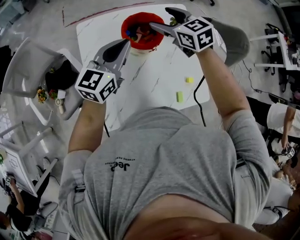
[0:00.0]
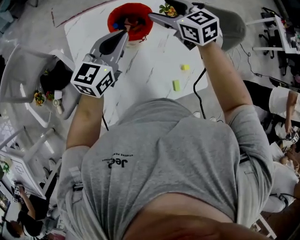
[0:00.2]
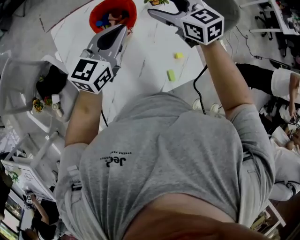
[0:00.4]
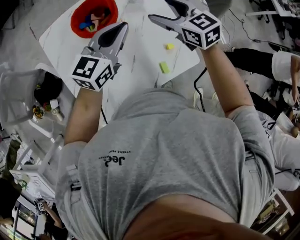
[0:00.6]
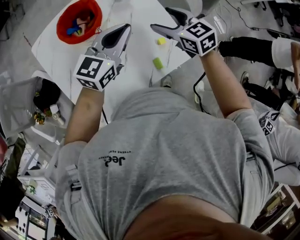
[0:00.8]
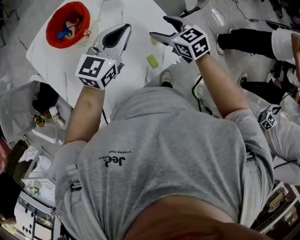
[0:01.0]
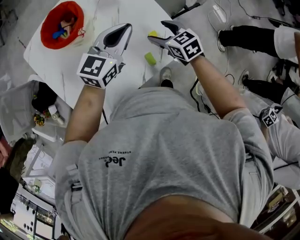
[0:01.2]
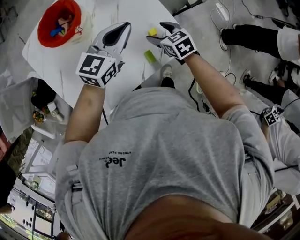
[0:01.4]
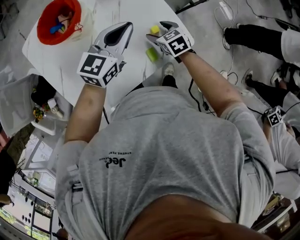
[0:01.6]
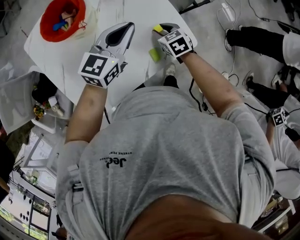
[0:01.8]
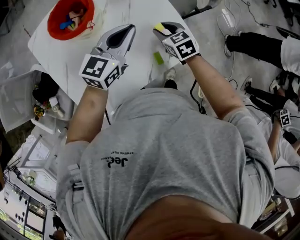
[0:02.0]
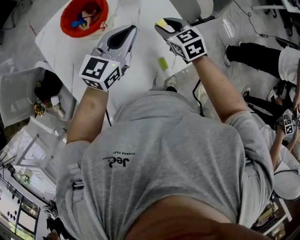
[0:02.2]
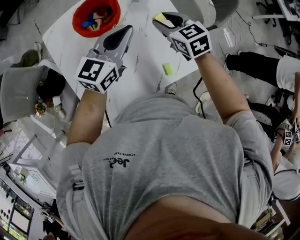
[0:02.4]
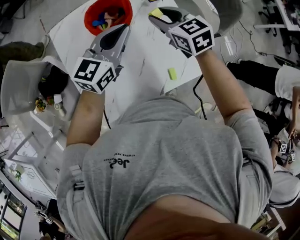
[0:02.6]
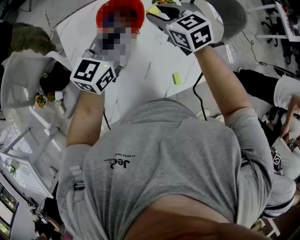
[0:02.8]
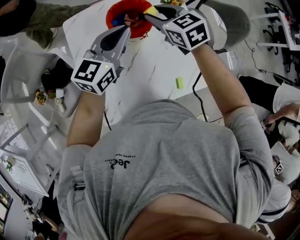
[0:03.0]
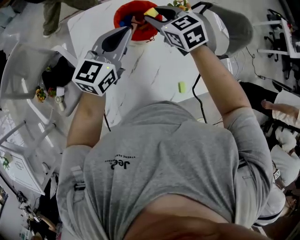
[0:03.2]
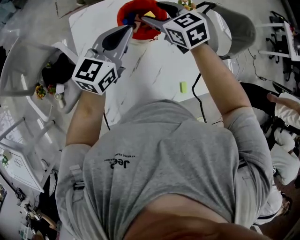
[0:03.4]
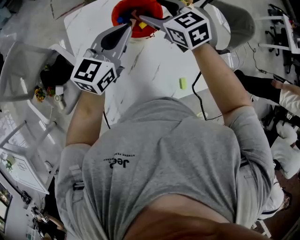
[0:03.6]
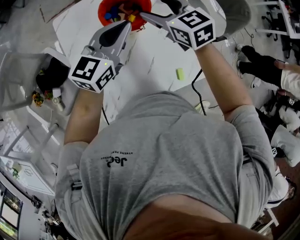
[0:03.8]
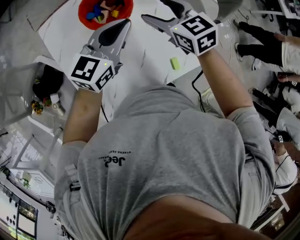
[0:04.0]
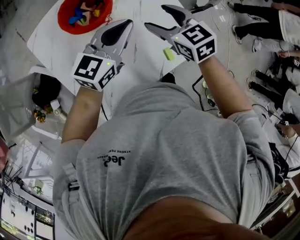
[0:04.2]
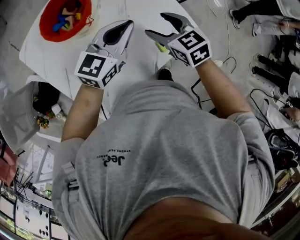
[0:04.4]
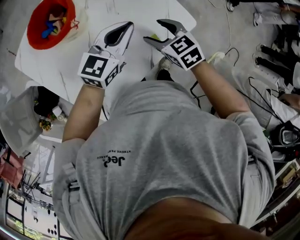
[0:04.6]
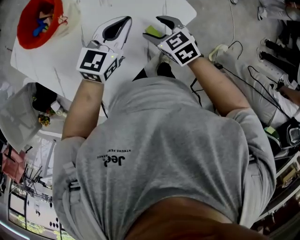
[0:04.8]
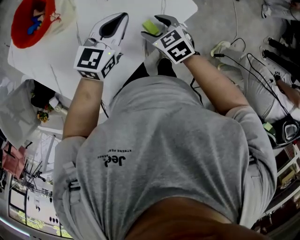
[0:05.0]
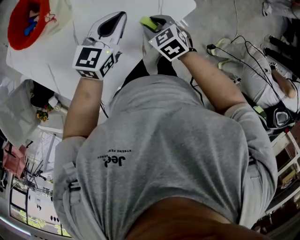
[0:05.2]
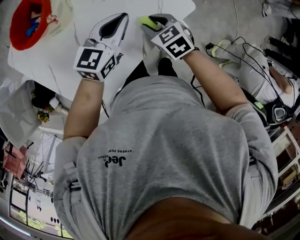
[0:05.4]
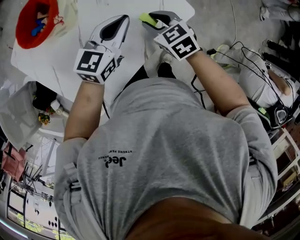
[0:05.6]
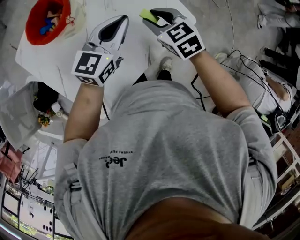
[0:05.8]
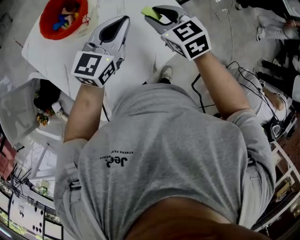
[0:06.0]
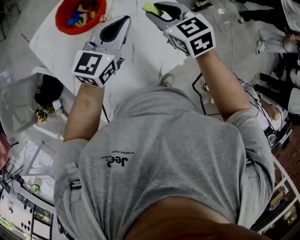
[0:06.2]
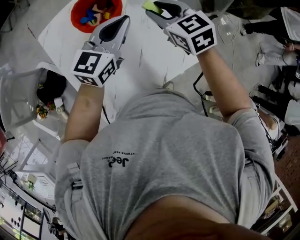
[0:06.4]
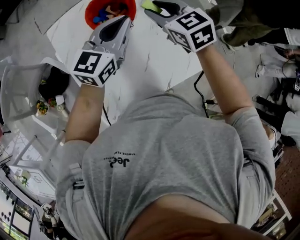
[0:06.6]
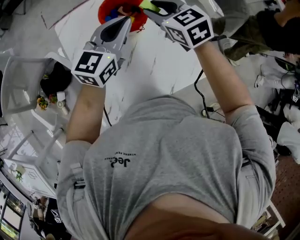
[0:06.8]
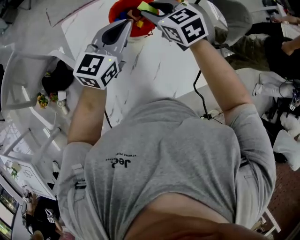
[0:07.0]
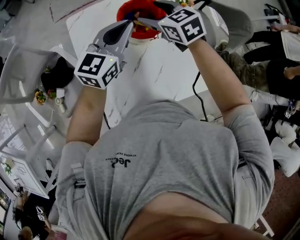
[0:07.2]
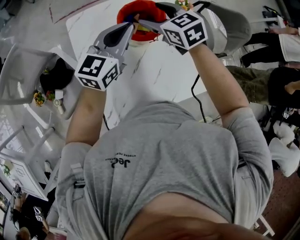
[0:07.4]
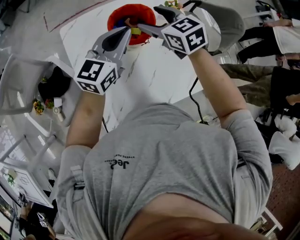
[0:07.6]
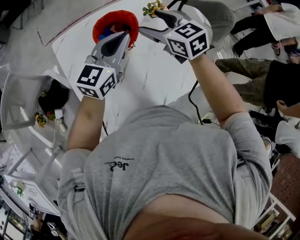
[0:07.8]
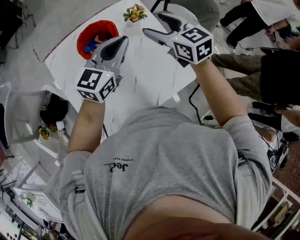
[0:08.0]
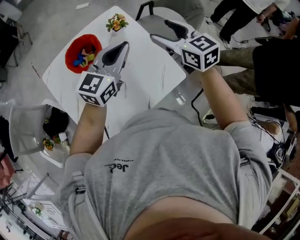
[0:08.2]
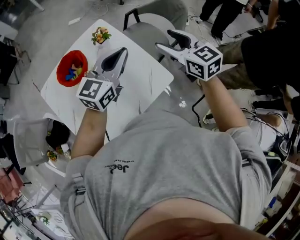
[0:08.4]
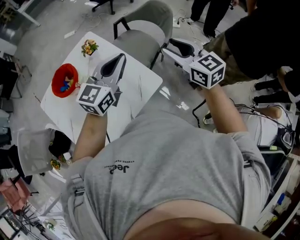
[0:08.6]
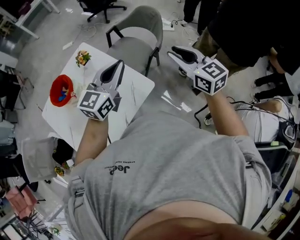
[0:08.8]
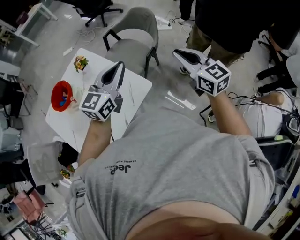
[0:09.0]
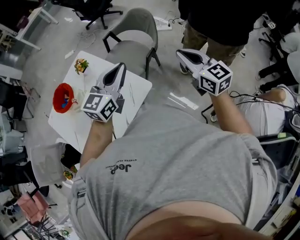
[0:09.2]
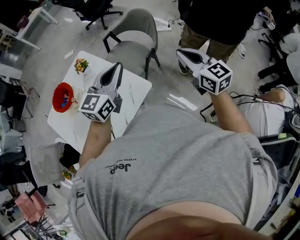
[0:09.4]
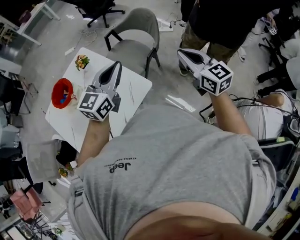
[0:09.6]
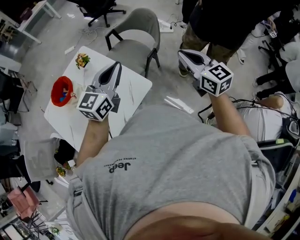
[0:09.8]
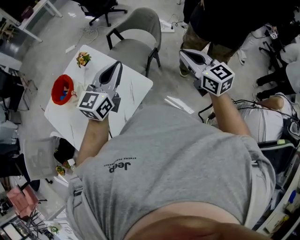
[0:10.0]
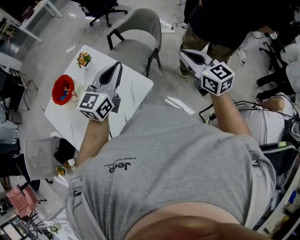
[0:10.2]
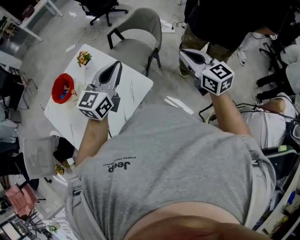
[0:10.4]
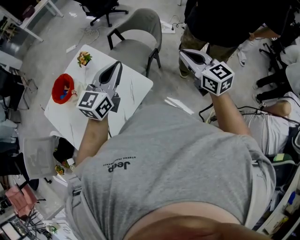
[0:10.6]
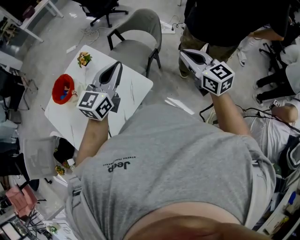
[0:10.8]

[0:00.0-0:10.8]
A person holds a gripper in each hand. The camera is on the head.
0:00.0 to 0:01.6: The right gripper is displaced to the right, downward and backward by some 40 cm, and turns by roughly 40 degrees; the left gripper shifts roughly 30 cm to the right and downward, and changes its angle by roughly 30 degrees.
0:01.6 to 0:03.0: The left gripper moves to the left and upward, approximately 25 cm, and rotates about 20 degrees, while the right gripper travels to the left, upward and forward by roughly 40 cm, swivels roughly 30 degrees, and closes its fingers.
0:03.0 to 0:04.6: The left gripper shifts by roughly 25 cm, and turns by approximately 30 degrees. The right gripper changes place by roughly 35 cm, changes its angle by roughly 30 degrees, and opens its fingers.
0:04.6 to 0:06.2: The right gripper shifts roughly 15 cm upward, forward and to the left, and closes up, while the left gripper heads to the left and upward, covering roughly 10 cm.
0:06.2 to 0:07.8: The right gripper moves to the left, forward and upward, about 15 cm, and opens; the left gripper goes some 15 cm to the left, upward and forward.
0:07.8 to 0:09.2: Both grippers are carried approximately 50 cm. The right gripper swivels roughly 40 degrees, and closes up. Meanwhile the left gripper turns by about 20 degrees.
0:09.2 to 0:10.8: The grippers make only small movements.

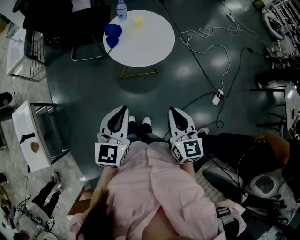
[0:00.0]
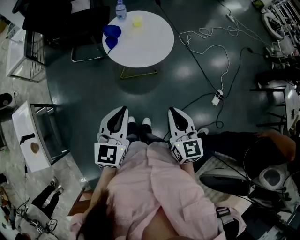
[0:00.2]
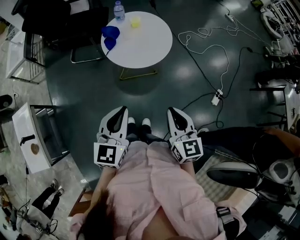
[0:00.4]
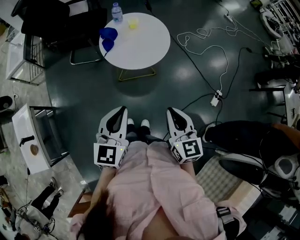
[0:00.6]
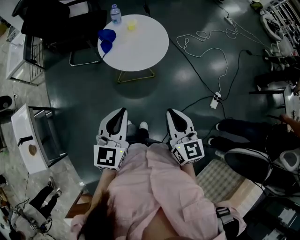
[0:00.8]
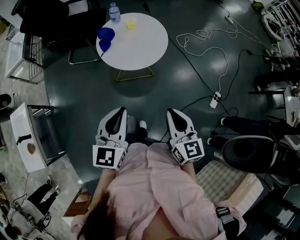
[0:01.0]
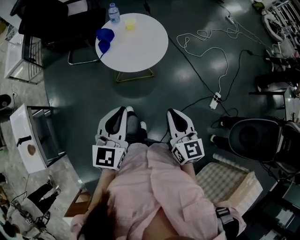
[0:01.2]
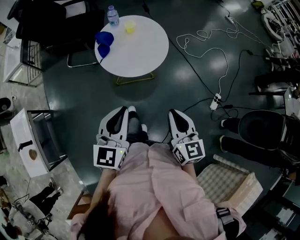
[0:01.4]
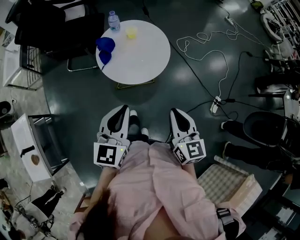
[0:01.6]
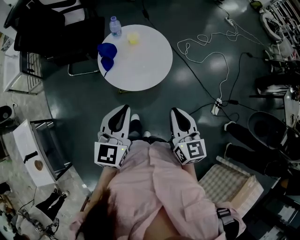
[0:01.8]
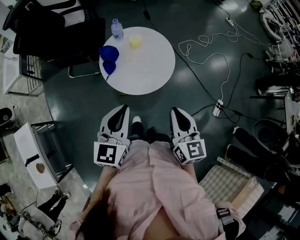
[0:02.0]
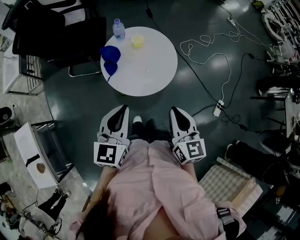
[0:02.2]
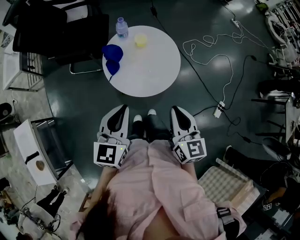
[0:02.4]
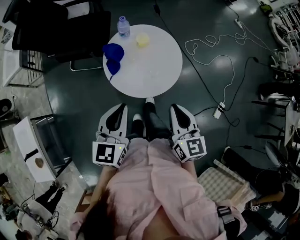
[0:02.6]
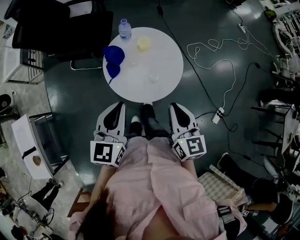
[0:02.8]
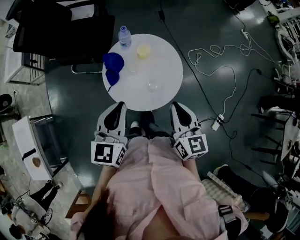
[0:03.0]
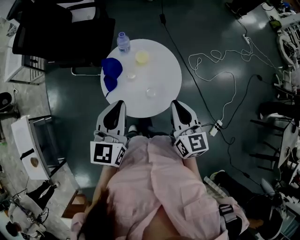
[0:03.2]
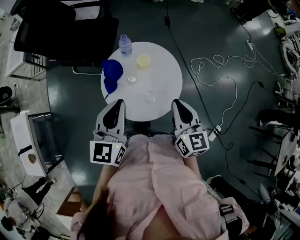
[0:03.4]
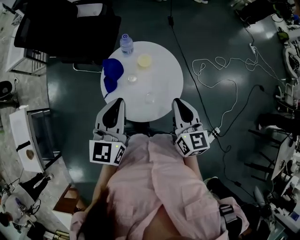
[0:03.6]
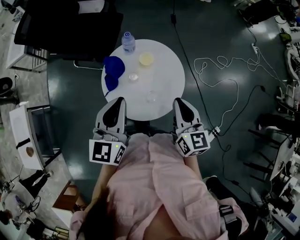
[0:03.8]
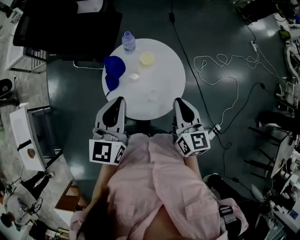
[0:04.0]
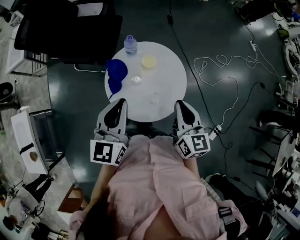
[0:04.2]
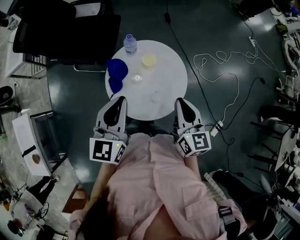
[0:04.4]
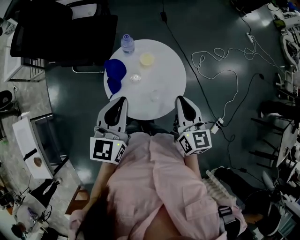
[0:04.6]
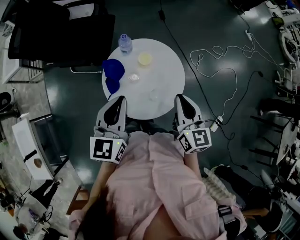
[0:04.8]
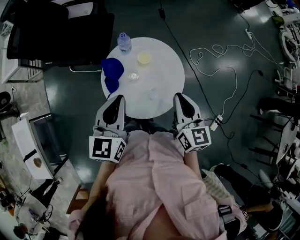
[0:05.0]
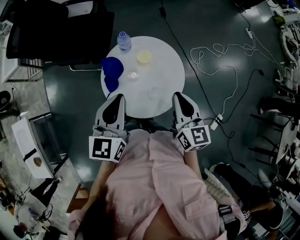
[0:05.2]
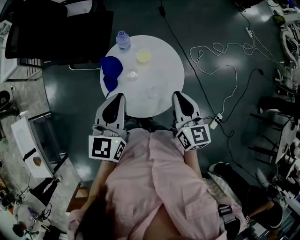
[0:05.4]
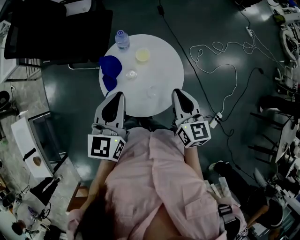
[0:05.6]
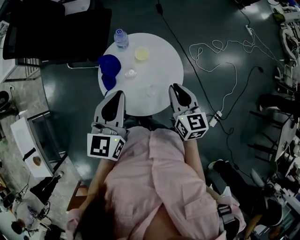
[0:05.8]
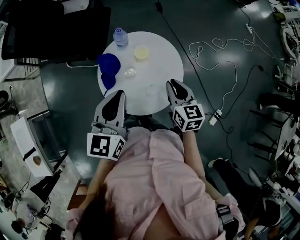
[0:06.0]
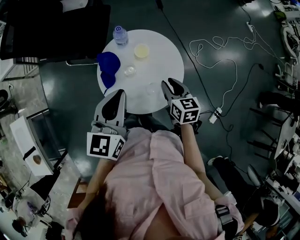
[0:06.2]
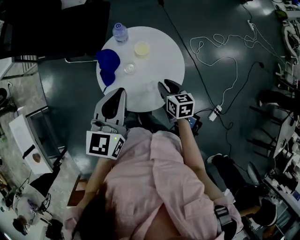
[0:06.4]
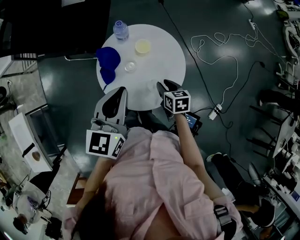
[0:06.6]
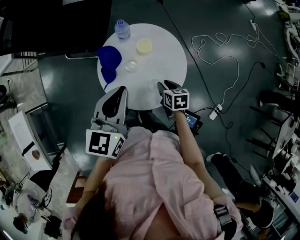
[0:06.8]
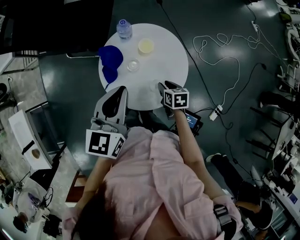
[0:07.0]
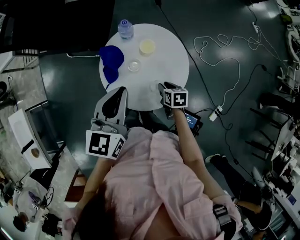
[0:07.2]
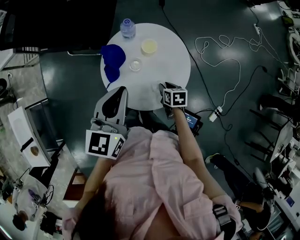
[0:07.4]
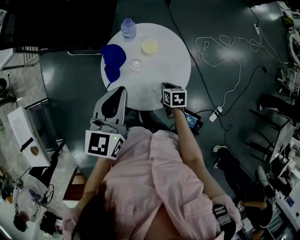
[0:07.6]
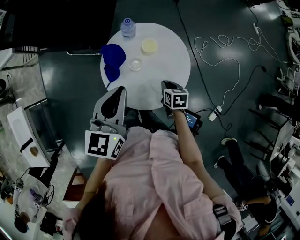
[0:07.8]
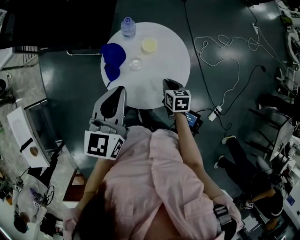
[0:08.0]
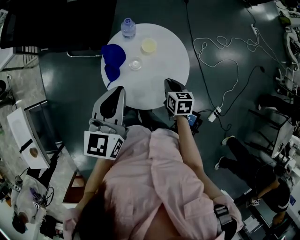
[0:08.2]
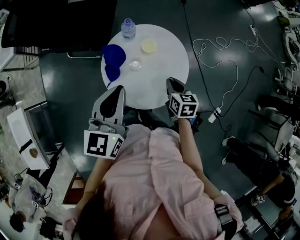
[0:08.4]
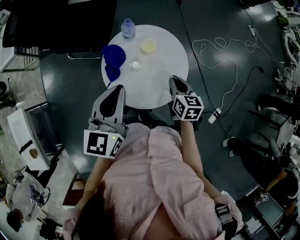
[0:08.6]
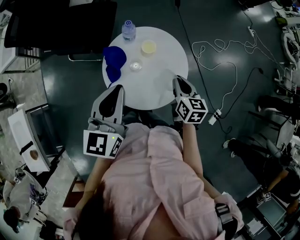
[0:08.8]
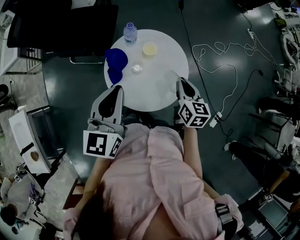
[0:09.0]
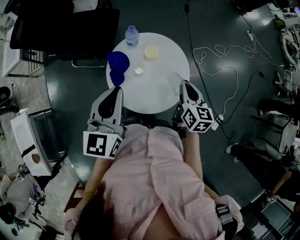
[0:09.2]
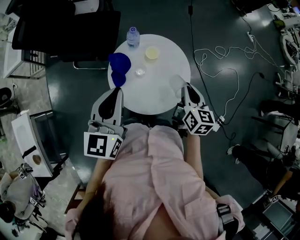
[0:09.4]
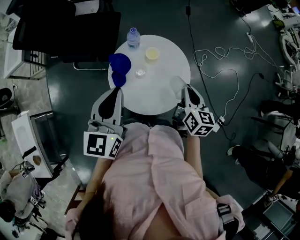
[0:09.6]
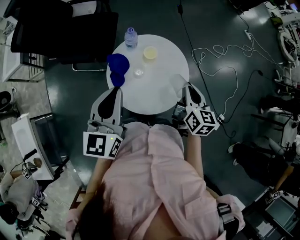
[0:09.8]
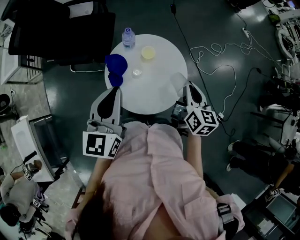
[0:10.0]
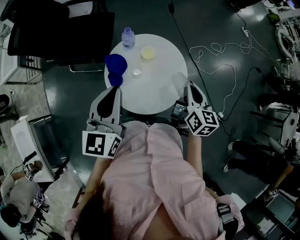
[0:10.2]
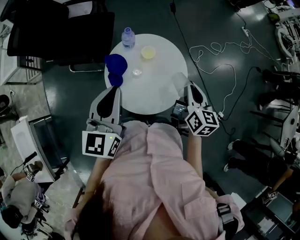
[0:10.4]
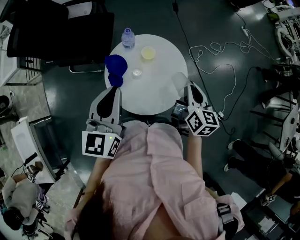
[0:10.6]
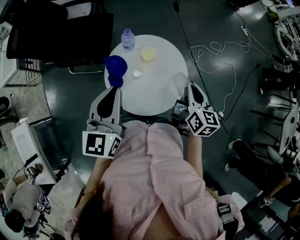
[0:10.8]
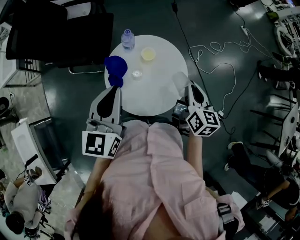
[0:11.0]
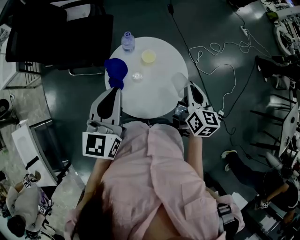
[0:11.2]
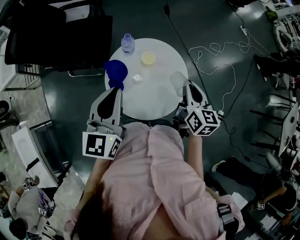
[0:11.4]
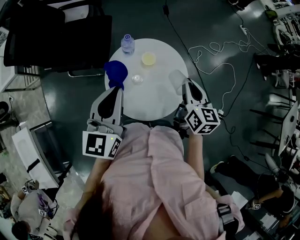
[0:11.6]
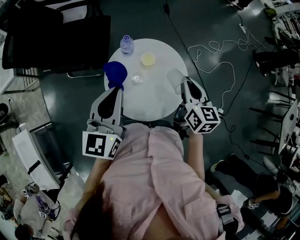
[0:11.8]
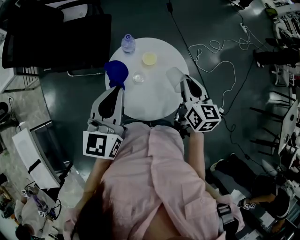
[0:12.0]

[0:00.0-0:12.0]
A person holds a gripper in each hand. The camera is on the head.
0:00.0 to 0:01.6: Both grippers travel together forward, about 10 cm.
0:01.6 to 0:03.0: The two grippers go some 20 cm forward.
0:03.0 to 0:04.4: Both grippers move forward, some 10 cm.
0:04.4 to 0:06.0: The right gripper shifts roughly 10 cm downward.
0:06.0 to 0:07.6: The right gripper shifts about 20 cm downward, and tips its fingers downward by some 30 degrees.
0:07.6 to 0:09.0: The right gripper heads upward, covering some 20 cm, and tips its fingers upward by some 30 degrees.
0:09.0 to 0:10.4: The right gripper moves upward, some 5 cm.
0:10.4 to 0:12.0: The right gripper moves roughly 5 cm.

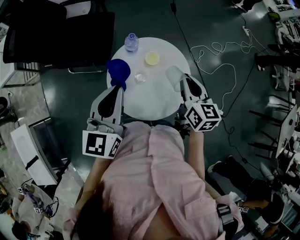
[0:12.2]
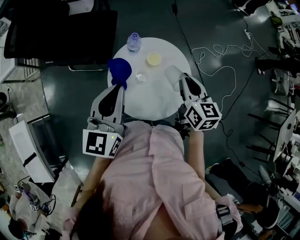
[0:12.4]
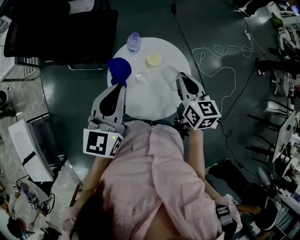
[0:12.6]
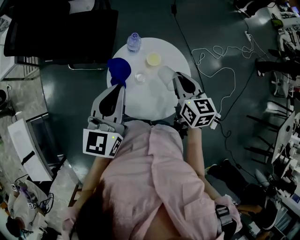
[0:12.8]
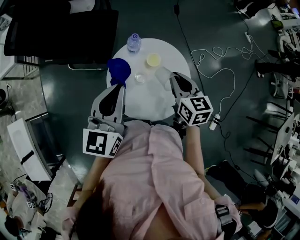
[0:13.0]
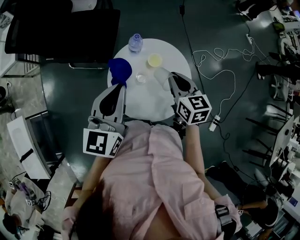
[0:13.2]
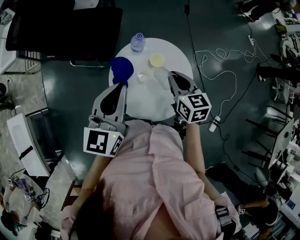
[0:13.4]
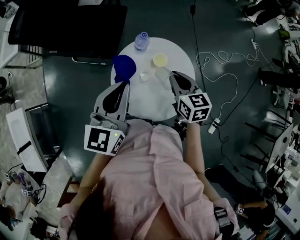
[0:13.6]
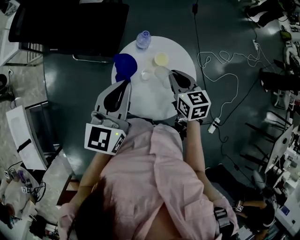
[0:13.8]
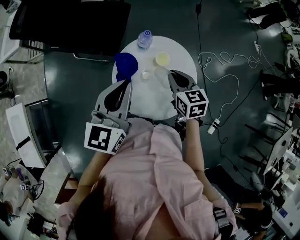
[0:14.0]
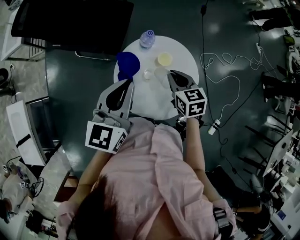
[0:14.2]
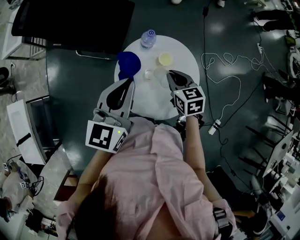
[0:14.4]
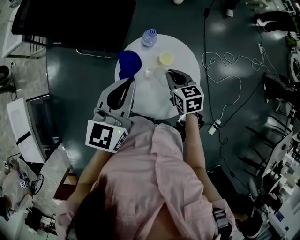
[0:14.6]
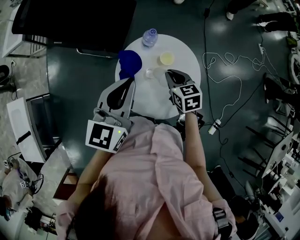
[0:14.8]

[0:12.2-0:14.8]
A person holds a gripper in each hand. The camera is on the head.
0:12.2 to 0:13.4: The right gripper moves to the left, about 5 cm.
0:13.4 to 0:14.8: The right gripper is displaced downward by about 10 cm.
